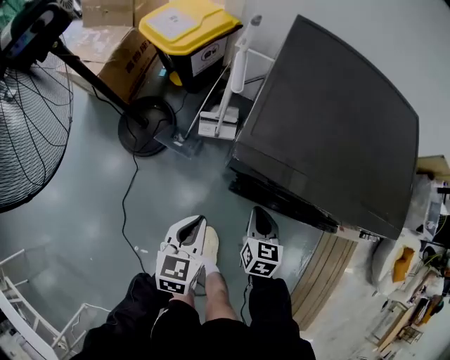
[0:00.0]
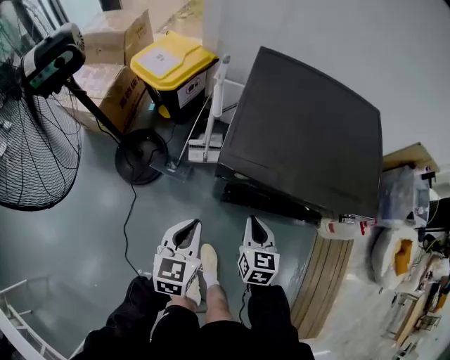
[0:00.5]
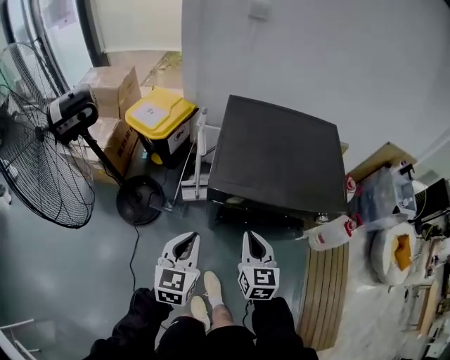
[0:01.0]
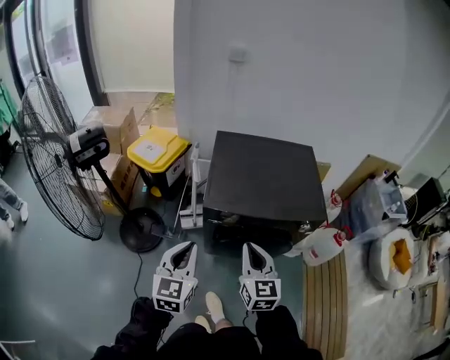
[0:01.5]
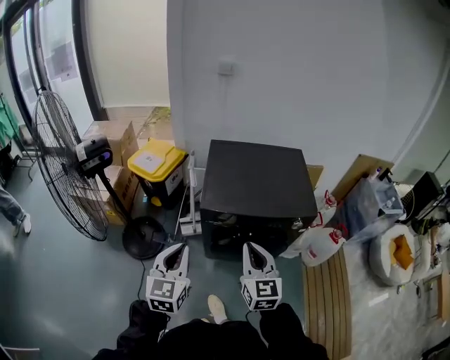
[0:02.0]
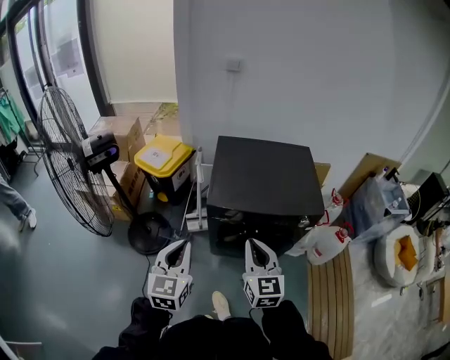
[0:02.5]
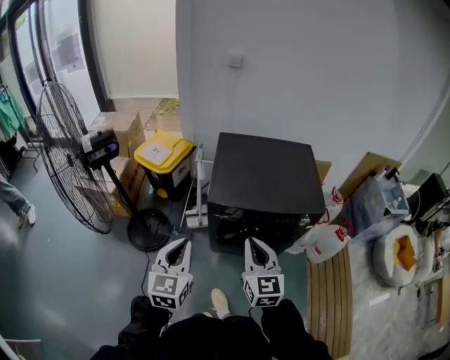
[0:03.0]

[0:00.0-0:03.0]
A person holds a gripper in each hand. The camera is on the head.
0:00.0 to 0:01.5: Both grippers travel together upward, about 40 cm. The right gripper turns by some 30 degrees. Meanwhile the left gripper changes its angle by about 30 degrees.
0:01.5 to 0:03.0: The left gripper travels backward by about 5 cm. Meanwhile the right gripper goes some 5 cm upward.

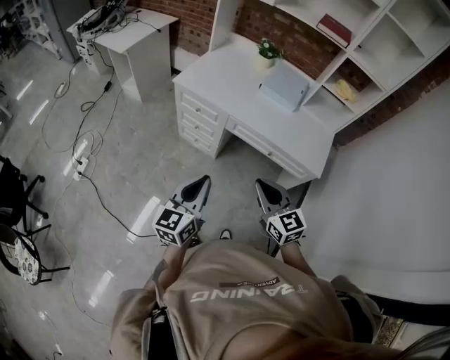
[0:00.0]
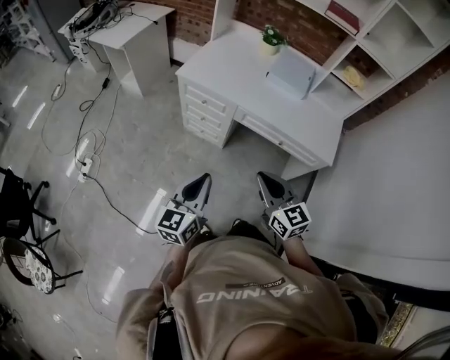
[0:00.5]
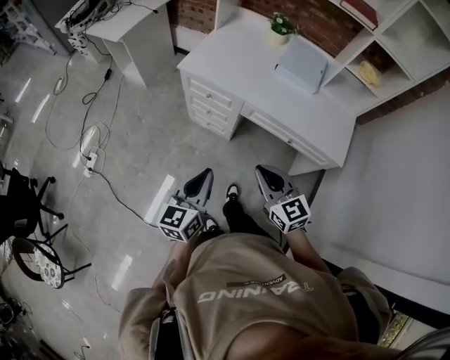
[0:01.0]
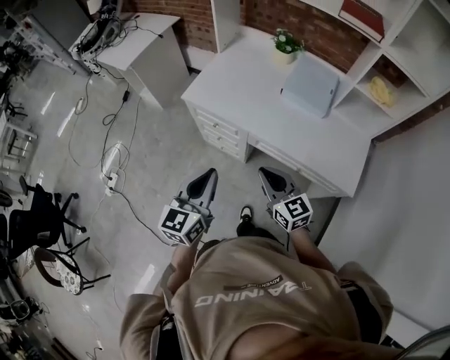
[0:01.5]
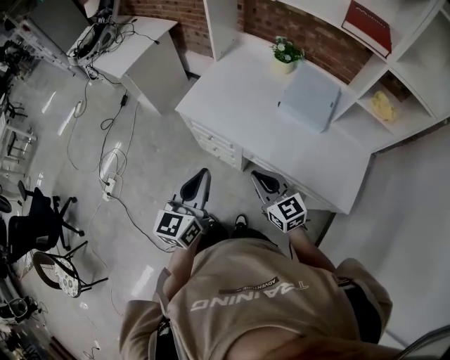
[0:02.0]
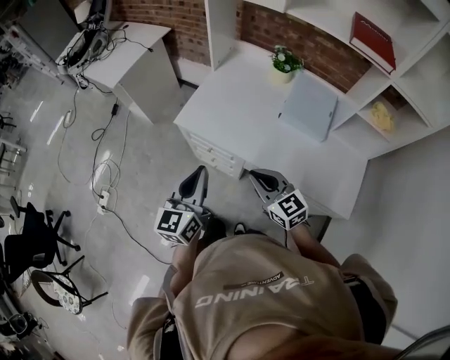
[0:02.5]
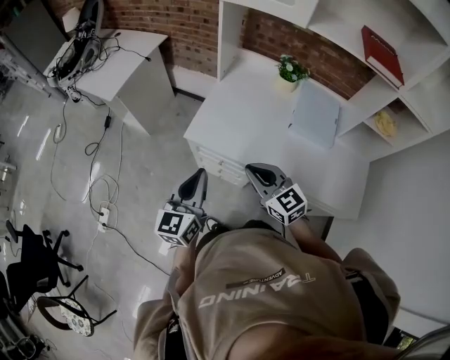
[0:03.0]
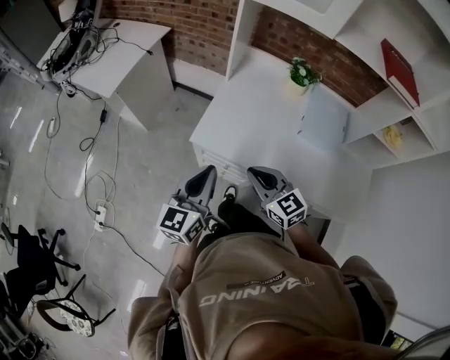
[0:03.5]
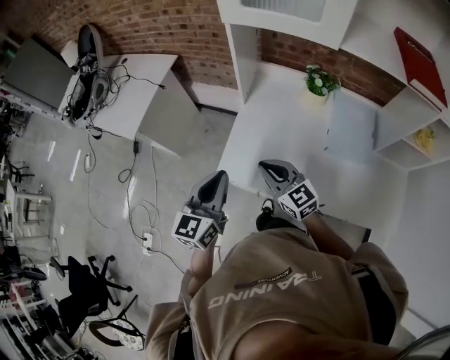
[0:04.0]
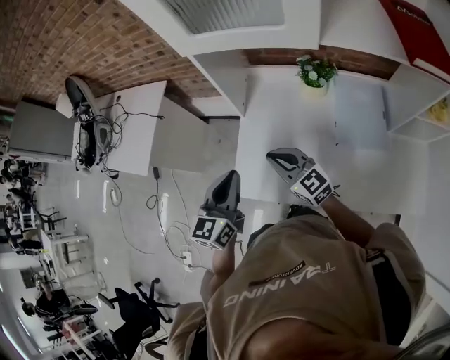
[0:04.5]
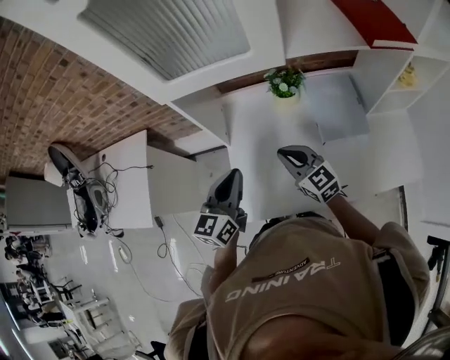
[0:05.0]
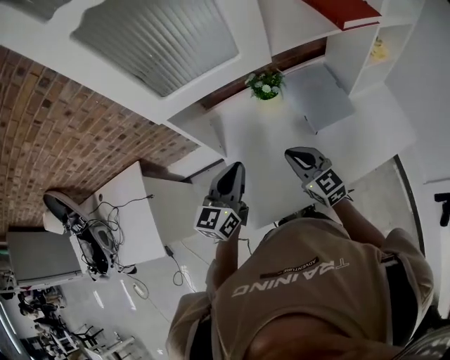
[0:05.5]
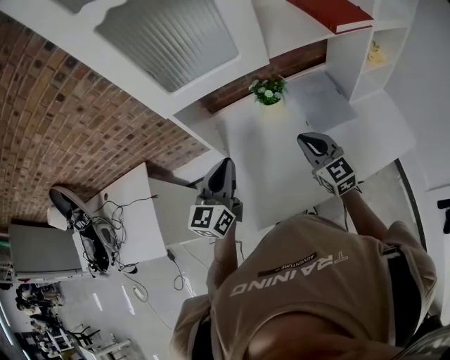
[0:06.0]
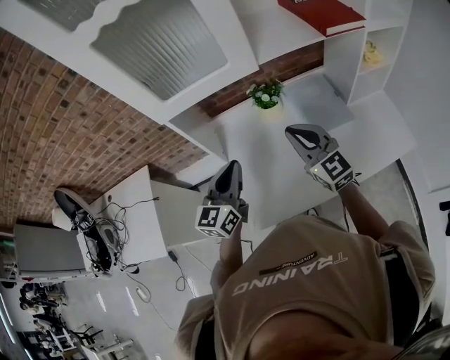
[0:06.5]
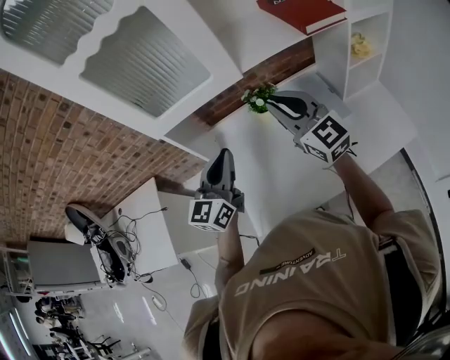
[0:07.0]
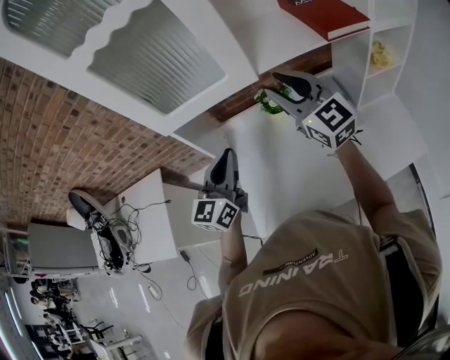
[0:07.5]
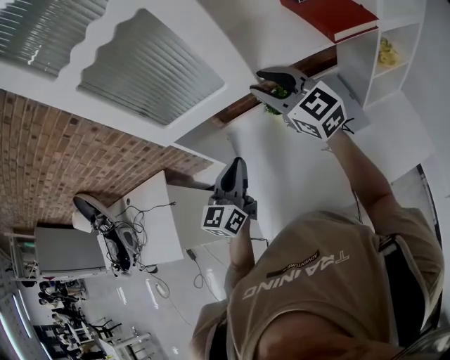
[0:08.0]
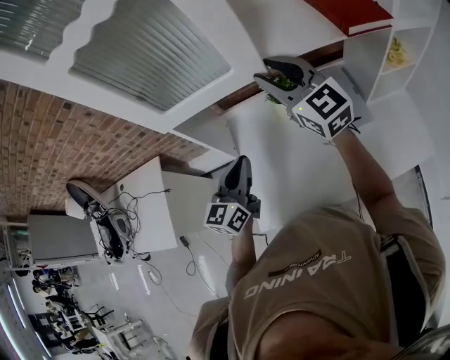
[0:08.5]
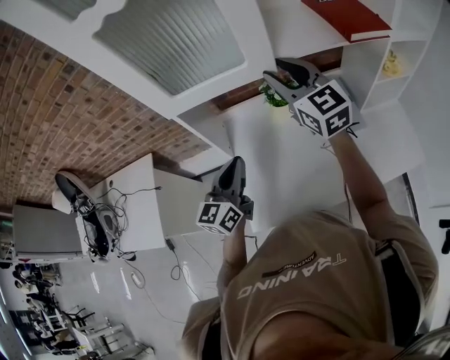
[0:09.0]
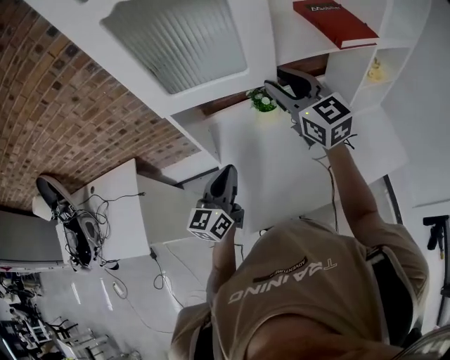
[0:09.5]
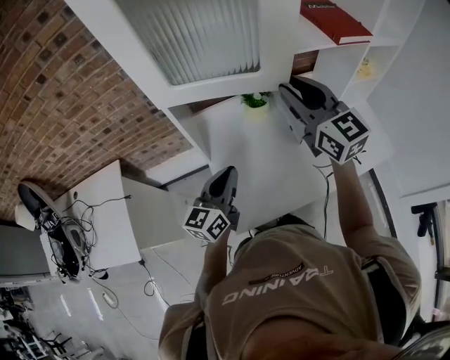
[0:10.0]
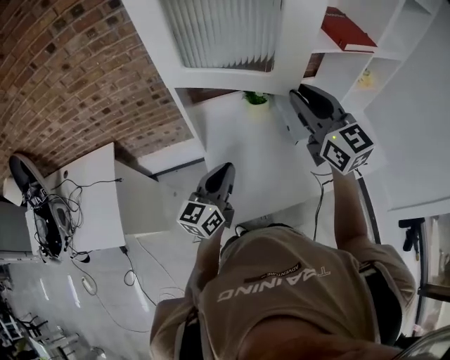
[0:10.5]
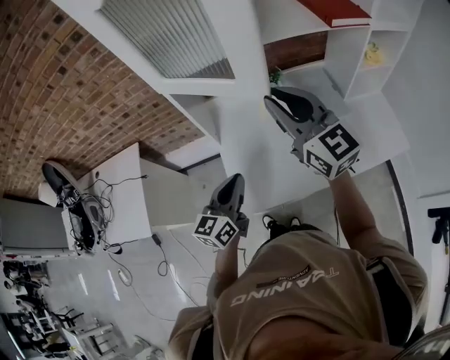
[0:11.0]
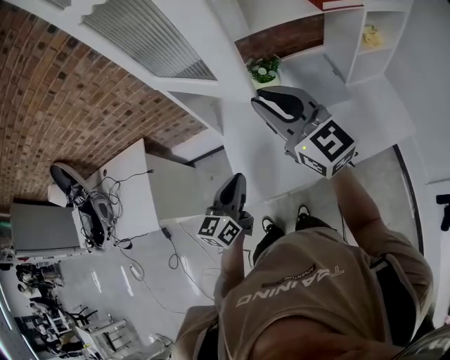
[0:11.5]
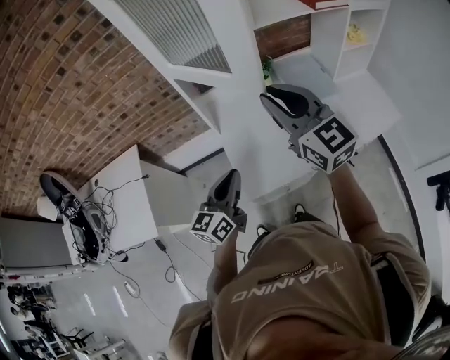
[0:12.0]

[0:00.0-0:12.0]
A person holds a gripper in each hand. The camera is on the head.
0:00.0 to 0:02.0: The grippers both shift forward by about 25 cm.
0:02.0 to 0:04.0: The right gripper is displaced forward and to the left by roughly 35 cm. Meanwhile the left gripper is displaced forward by about 35 cm.
0:04.0 to 0:06.0: The right gripper shifts by some 20 cm, and rotates roughly 50 degrees. The left gripper shifts by about 20 cm, and swivels about 30 degrees.
0:06.0 to 0:08.0: The right gripper is displaced upward and forward by some 25 cm, changes its angle by some 20 degrees, and opens. The left gripper shifts some 10 cm to the right and forward.
0:08.0 to 0:10.0: The right gripper moves backward, roughly 10 cm, while the left gripper moves backward and downward, roughly 10 cm.
0:10.0 to 0:12.0: Both grippers move backward, approximately 15 cm.

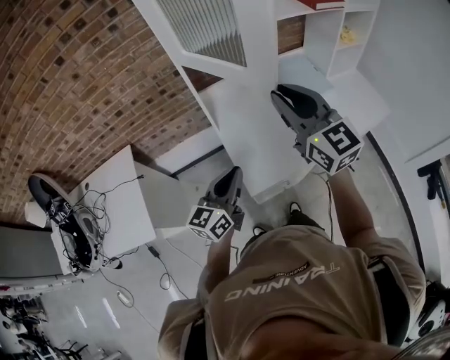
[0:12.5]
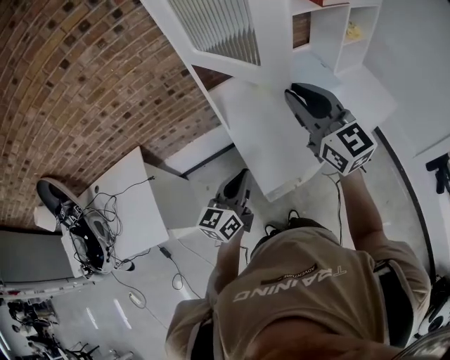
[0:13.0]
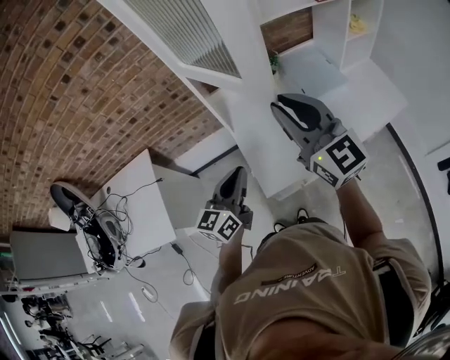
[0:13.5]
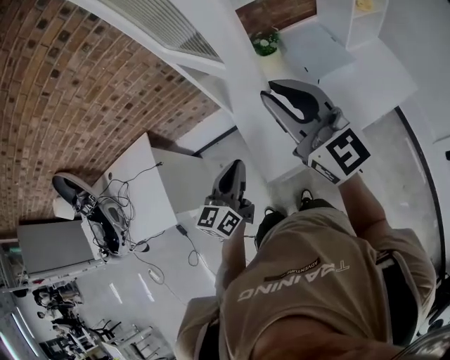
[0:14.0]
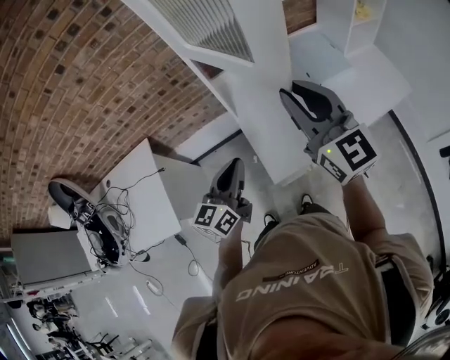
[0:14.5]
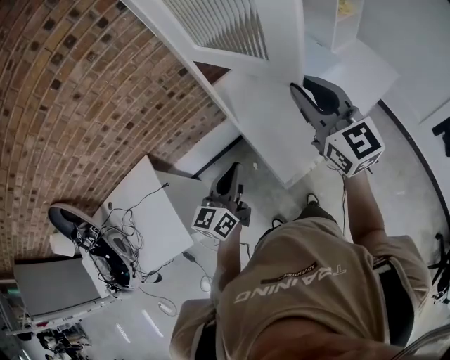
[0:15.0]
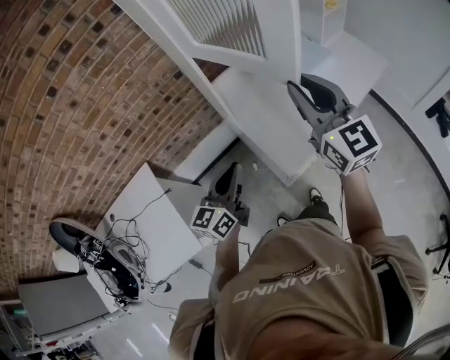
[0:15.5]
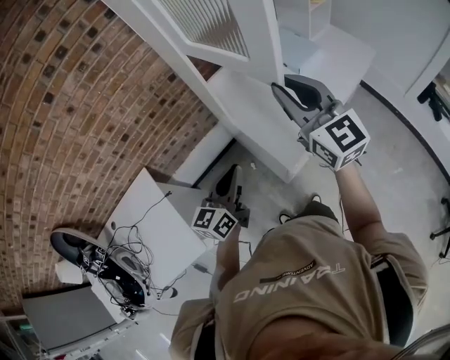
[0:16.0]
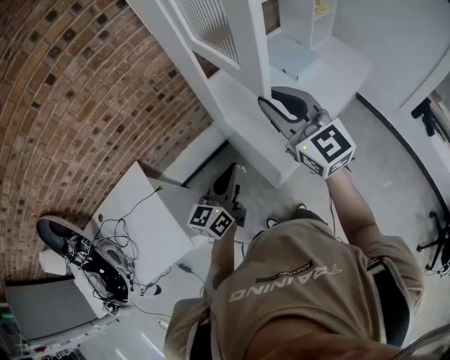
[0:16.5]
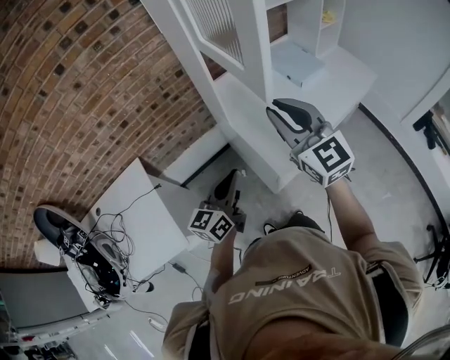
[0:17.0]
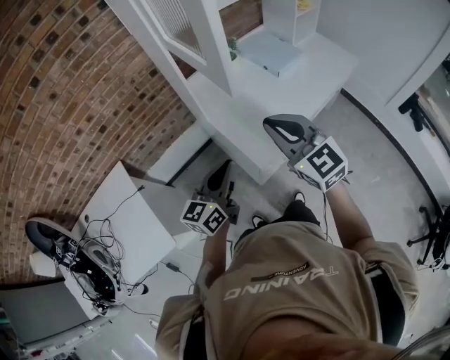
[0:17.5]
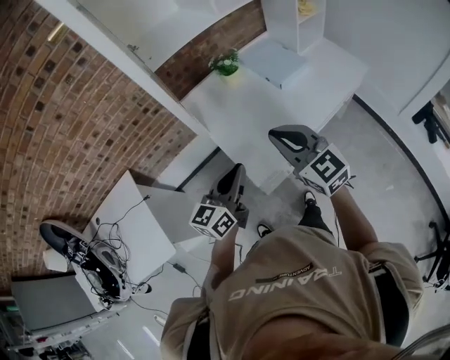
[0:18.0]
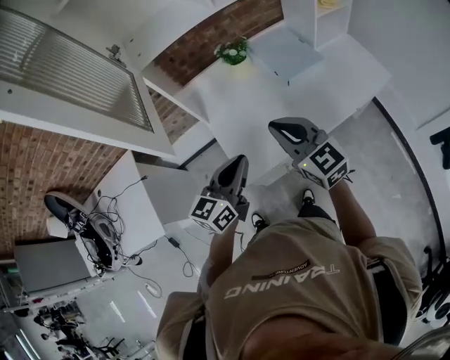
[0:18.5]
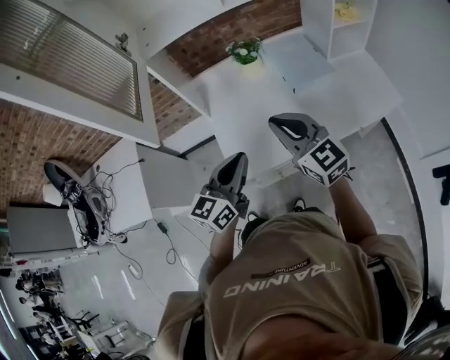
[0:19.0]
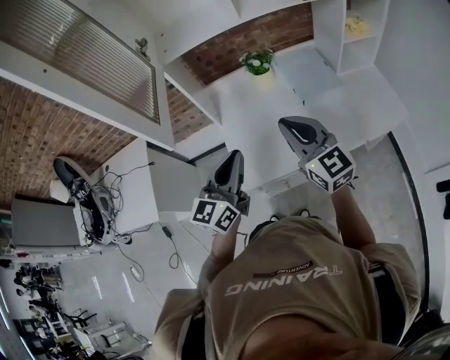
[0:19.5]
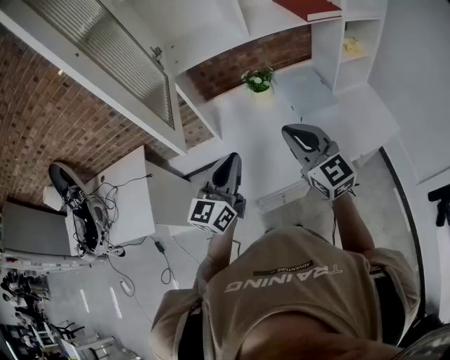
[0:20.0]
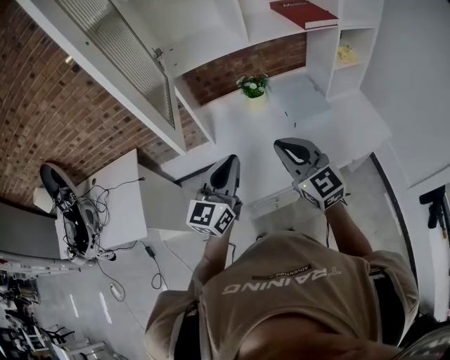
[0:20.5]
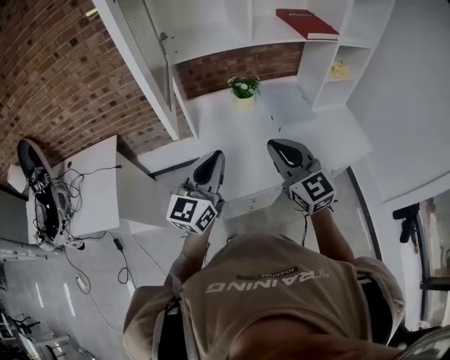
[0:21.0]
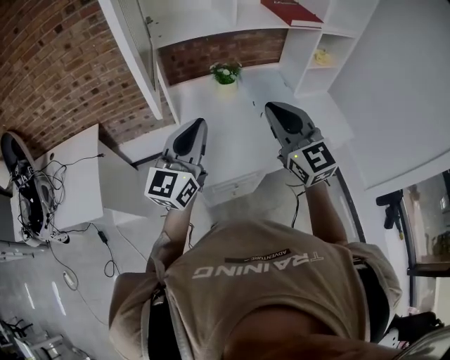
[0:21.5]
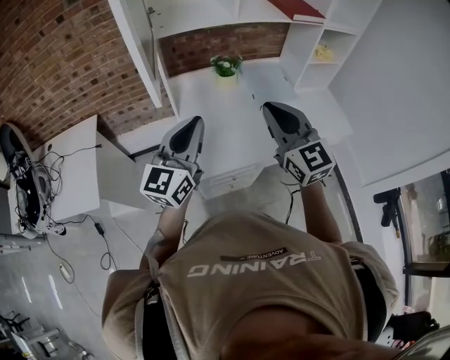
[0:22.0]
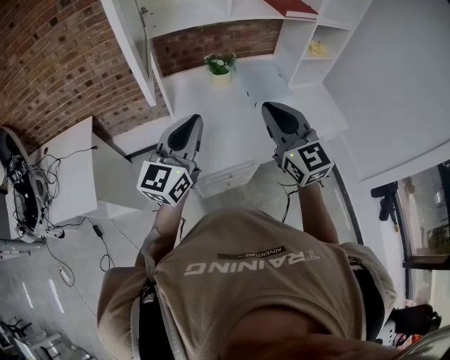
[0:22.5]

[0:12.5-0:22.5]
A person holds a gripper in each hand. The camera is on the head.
0:12.5 to 0:14.5: The left gripper moves to the left, approximately 5 cm.
0:14.5 to 0:16.5: Both grippers travel together to the left and backward, some 10 cm.
0:16.5 to 0:18.5: The right gripper heads to the right and downward, covering some 25 cm, and swivels roughly 20 degrees. Meanwhile the left gripper is displaced to the right by approximately 25 cm.
0:18.5 to 0:20.5: The left gripper shifts approximately 10 cm upward, and turns by about 20 degrees, while the right gripper is displaced upward by about 5 cm.
0:20.5 to 0:22.5: The right gripper shifts some 5 cm upward, while the left gripper moves about 5 cm.

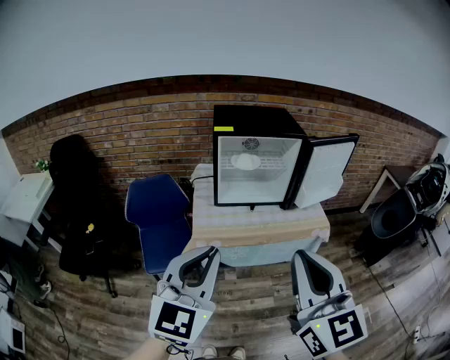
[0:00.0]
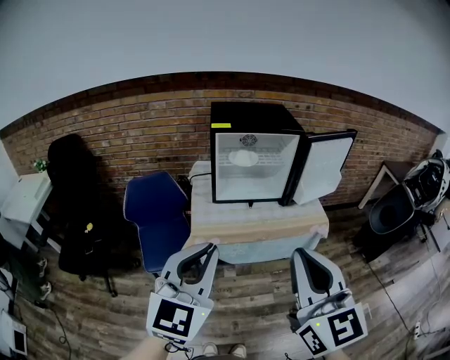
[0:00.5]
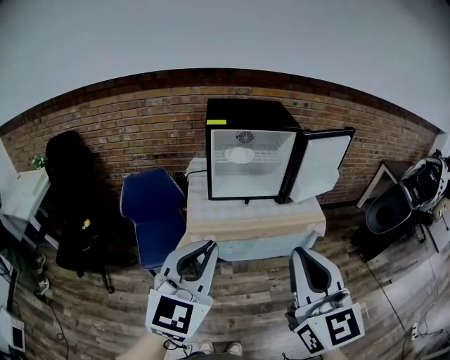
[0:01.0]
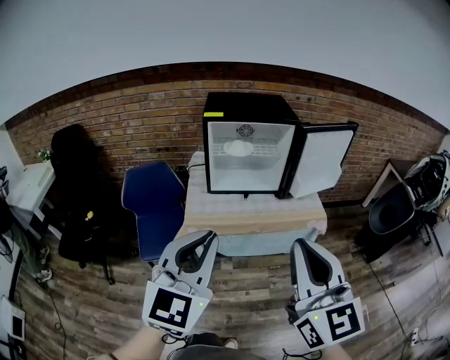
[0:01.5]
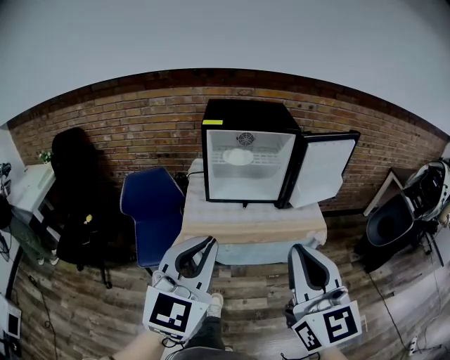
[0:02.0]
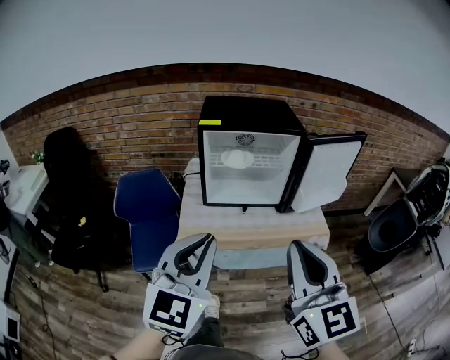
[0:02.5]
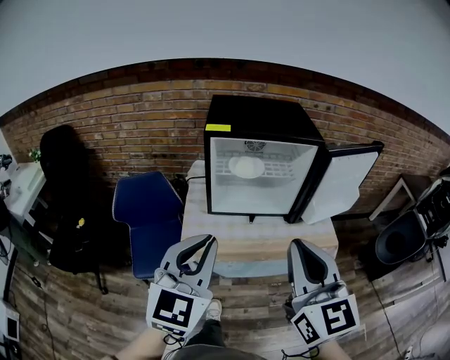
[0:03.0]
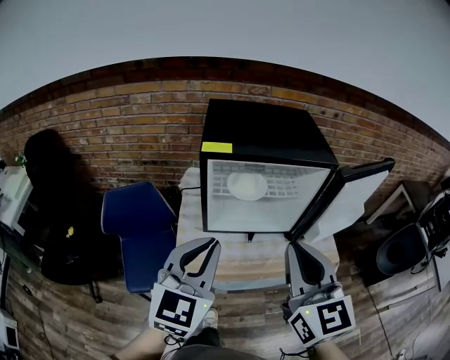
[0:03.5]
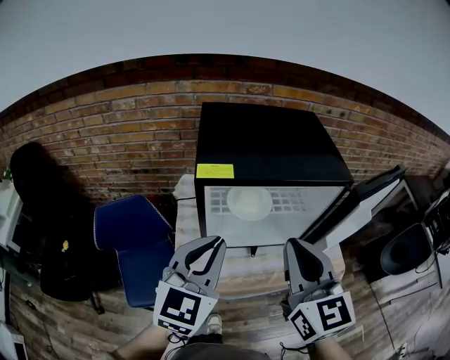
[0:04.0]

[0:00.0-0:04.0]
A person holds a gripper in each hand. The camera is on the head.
0:00.0 to 0:02.0: Both grippers move to the right, approximately 5 cm.
0:02.0 to 0:04.0: Both grippers move forward, about 40 cm.
